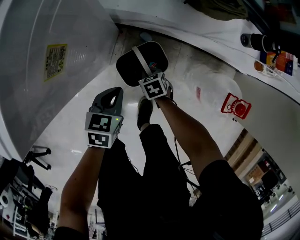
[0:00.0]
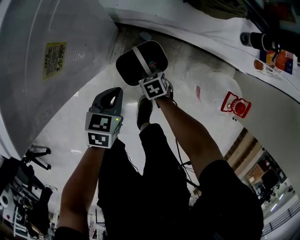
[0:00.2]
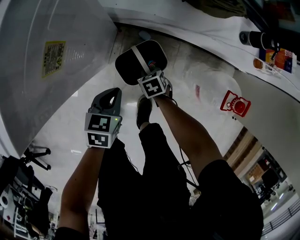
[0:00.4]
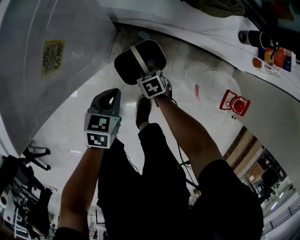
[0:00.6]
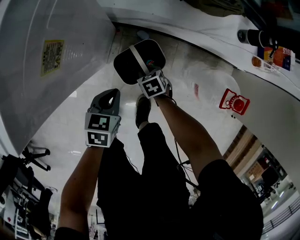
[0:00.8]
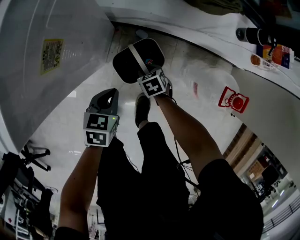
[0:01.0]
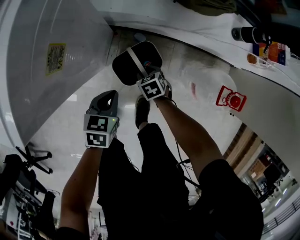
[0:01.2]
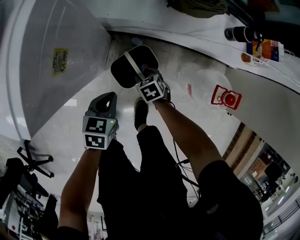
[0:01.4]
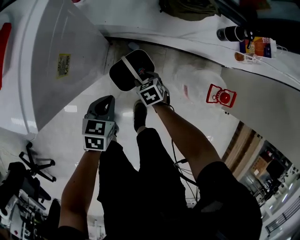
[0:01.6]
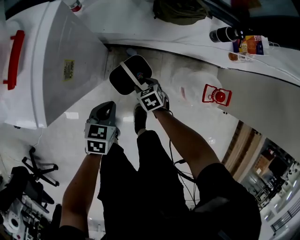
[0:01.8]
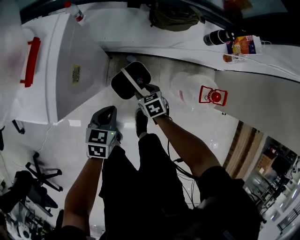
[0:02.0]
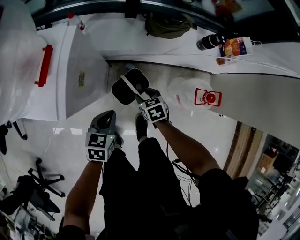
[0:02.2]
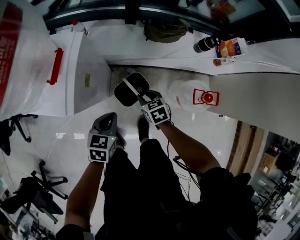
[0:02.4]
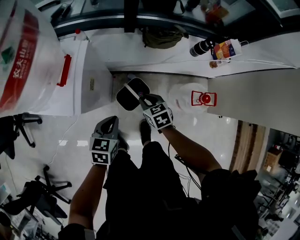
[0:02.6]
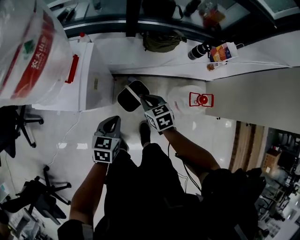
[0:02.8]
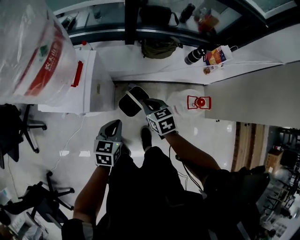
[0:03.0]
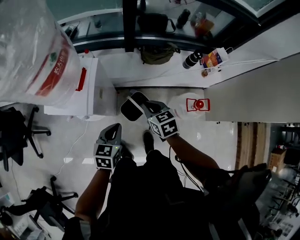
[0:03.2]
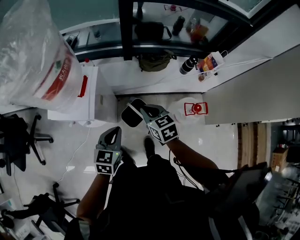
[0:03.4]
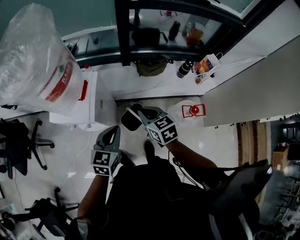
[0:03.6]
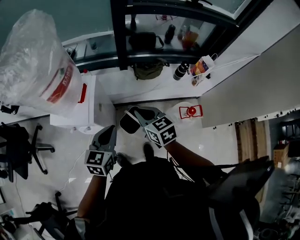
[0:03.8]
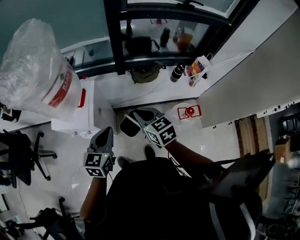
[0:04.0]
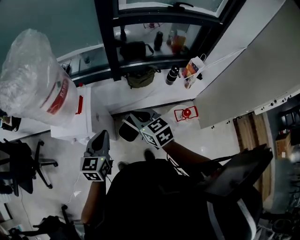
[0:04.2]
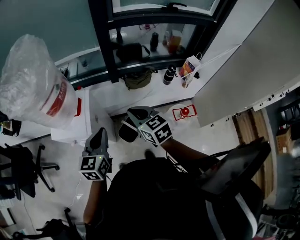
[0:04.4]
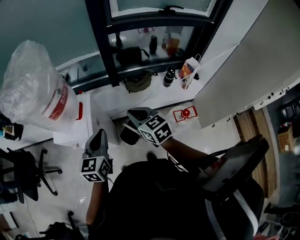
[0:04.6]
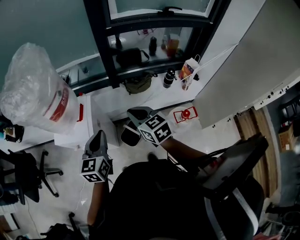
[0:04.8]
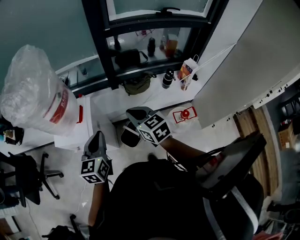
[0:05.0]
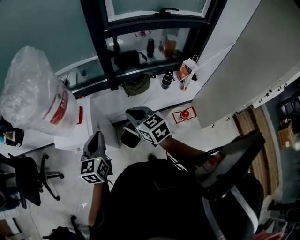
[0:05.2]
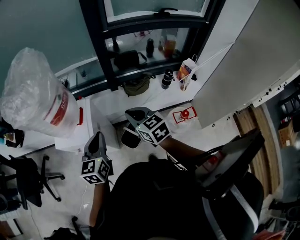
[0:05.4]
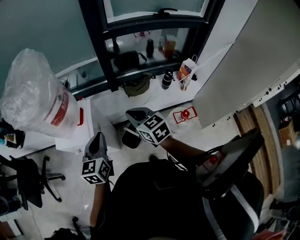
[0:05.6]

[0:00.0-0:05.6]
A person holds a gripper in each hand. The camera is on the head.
0:00.0 to 0:01.4: The right gripper travels upward by approximately 5 cm, and opens its fingers.
0:01.4 to 0:02.8: Both grippers move upward, some 30 cm. The right gripper swivels about 20 degrees, and closes its fingers.
0:02.8 to 0:04.2: The grippers both shift upward by about 25 cm. The left gripper rotates roughly 20 degrees. The right gripper rotates roughly 20 degrees.
0:04.2 to 0:05.6: The grippers stay close to where they were, moving slightly.

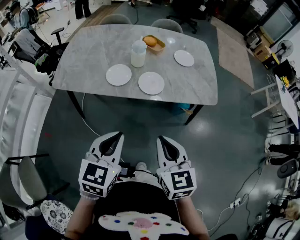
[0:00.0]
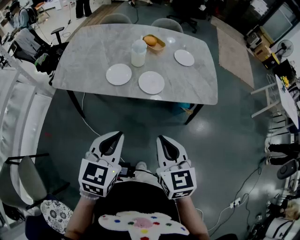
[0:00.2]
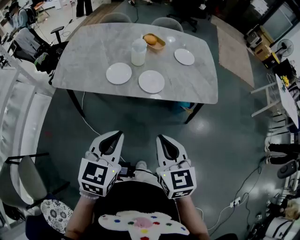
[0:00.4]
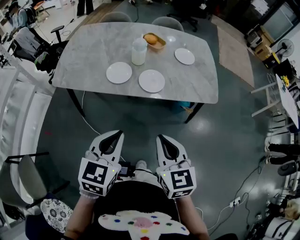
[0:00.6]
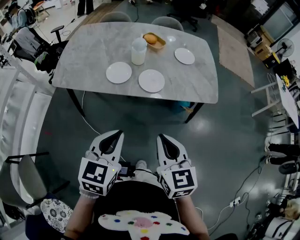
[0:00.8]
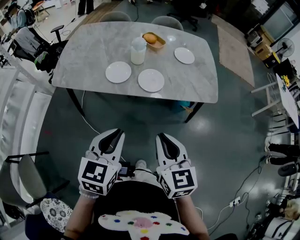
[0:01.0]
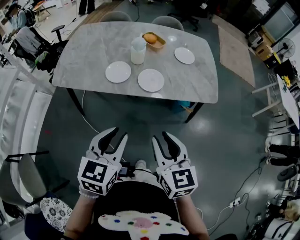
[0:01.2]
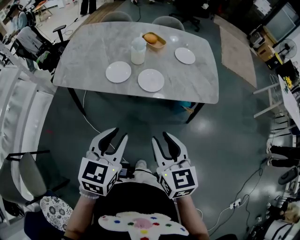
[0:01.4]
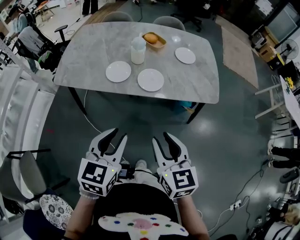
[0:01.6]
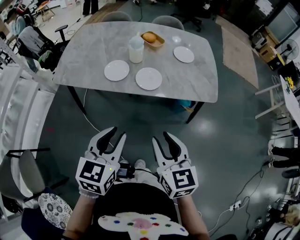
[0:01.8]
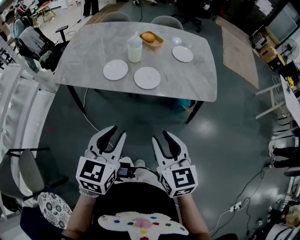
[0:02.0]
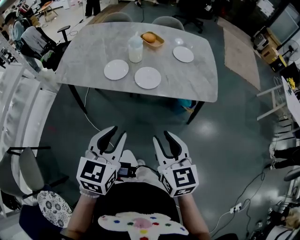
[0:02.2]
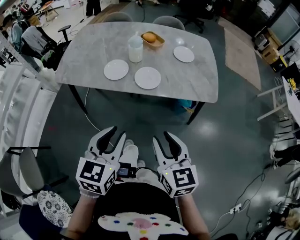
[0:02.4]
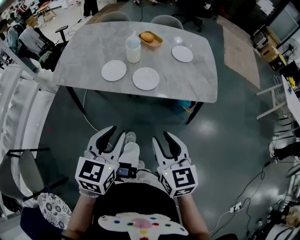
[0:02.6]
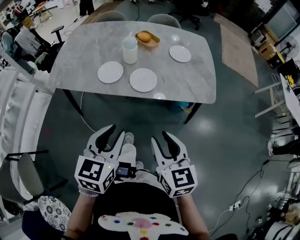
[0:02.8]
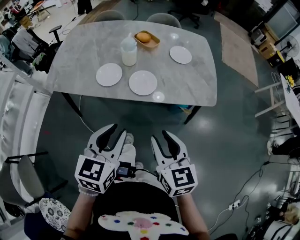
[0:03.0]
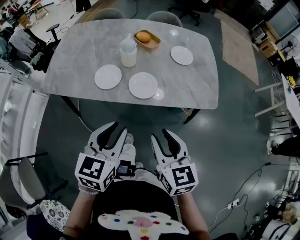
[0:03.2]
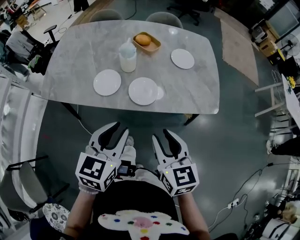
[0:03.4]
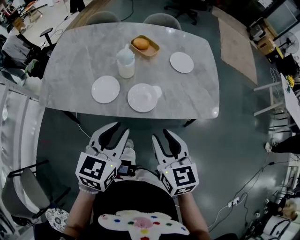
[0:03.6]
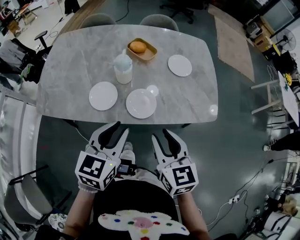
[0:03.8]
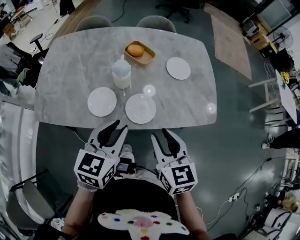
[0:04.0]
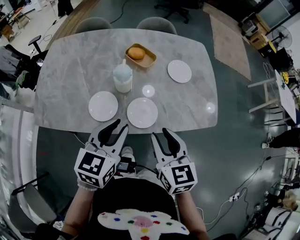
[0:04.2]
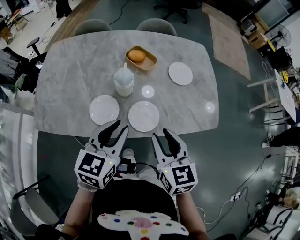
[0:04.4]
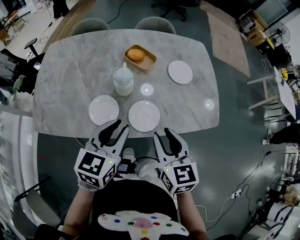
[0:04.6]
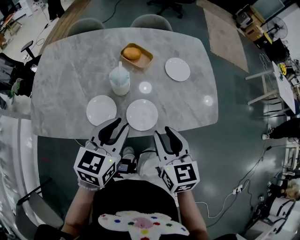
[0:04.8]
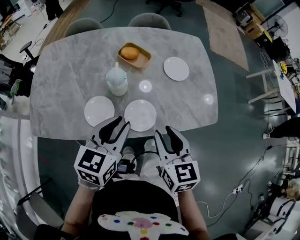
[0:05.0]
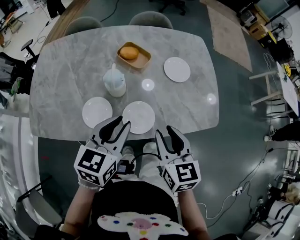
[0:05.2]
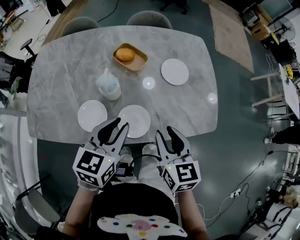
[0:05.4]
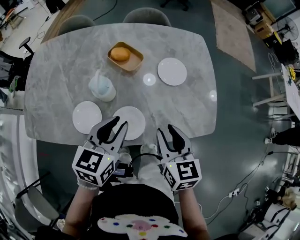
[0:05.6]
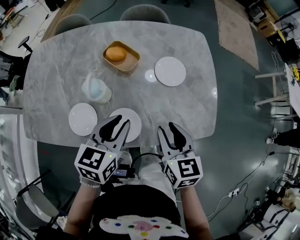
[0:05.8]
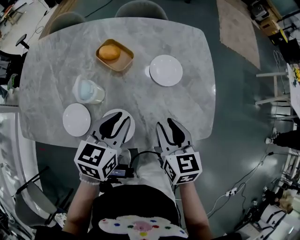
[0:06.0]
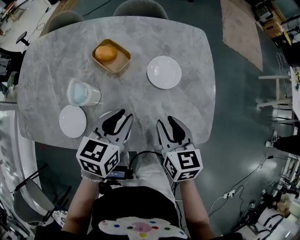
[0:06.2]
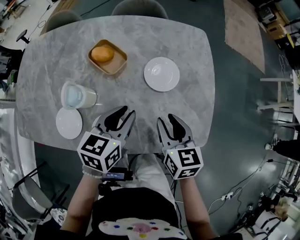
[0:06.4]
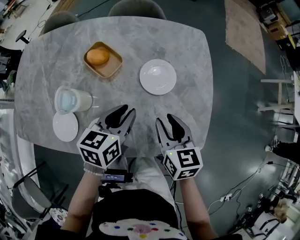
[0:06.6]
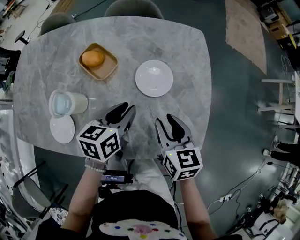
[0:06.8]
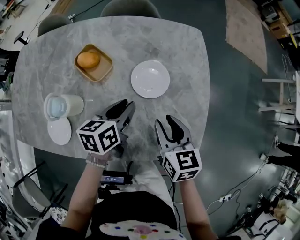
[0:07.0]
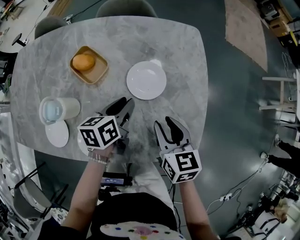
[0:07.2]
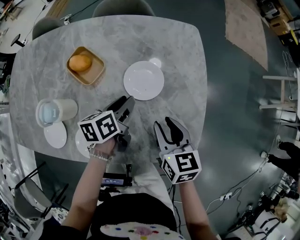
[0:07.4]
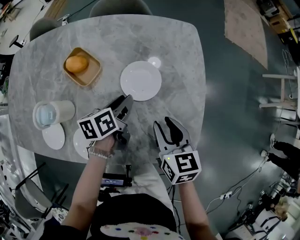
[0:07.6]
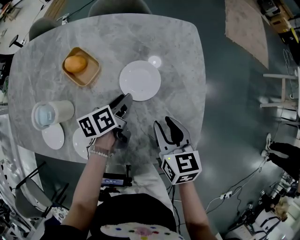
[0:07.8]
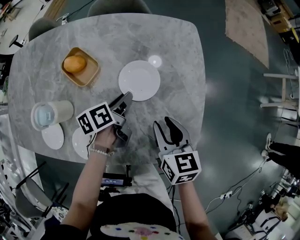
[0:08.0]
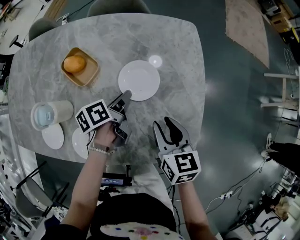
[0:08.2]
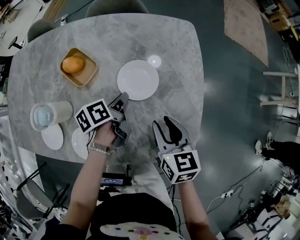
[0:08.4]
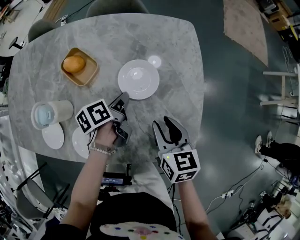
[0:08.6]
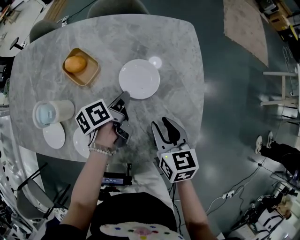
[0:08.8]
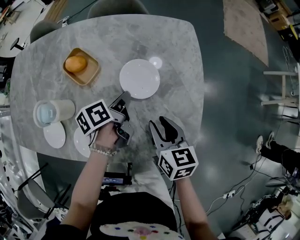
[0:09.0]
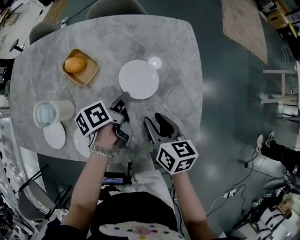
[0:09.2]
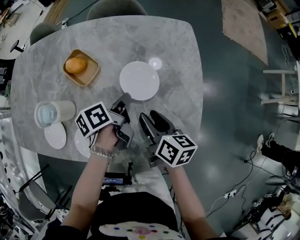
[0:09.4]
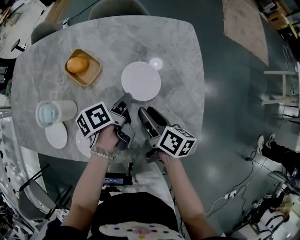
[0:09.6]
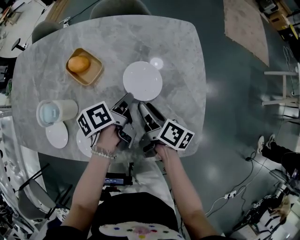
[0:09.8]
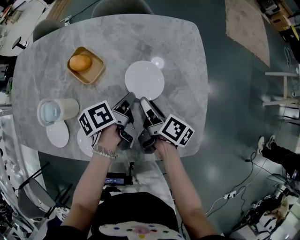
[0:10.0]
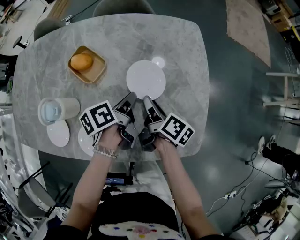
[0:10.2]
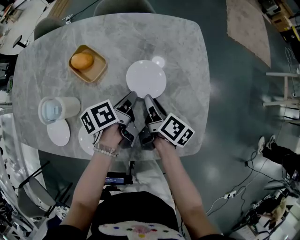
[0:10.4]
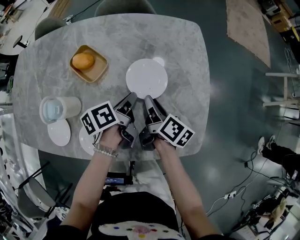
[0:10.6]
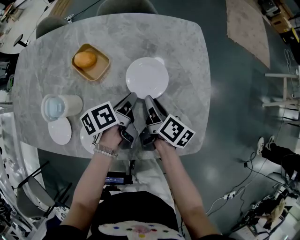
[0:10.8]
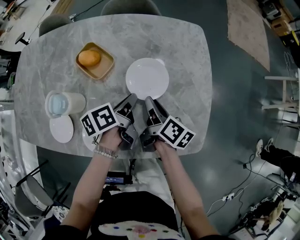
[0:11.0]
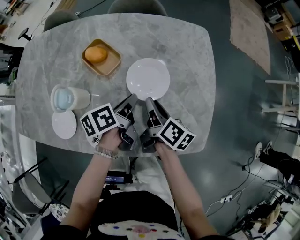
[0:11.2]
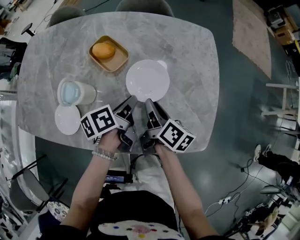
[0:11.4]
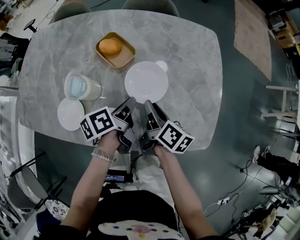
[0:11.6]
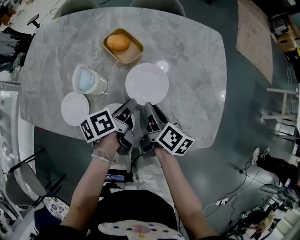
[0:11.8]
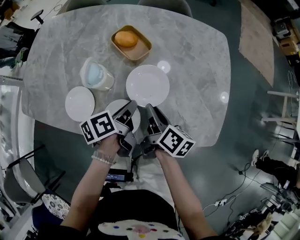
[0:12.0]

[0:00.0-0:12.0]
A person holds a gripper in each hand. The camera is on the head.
0:00.0 to 0:01.6: The right gripper opens its fingers, while the left gripper opens.
0:01.6 to 0:03.0: The right gripper changes place by approximately 5 cm. The left gripper moves forward, roughly 5 cm.
0:03.0 to 0:04.4: Both grippers travel together forward, approximately 20 cm.
0:04.4 to 0:06.0: Both grippers move forward, to the right and downward, approximately 20 cm.
0:06.0 to 0:07.6: The left gripper is displaced downward, forward and to the right by about 20 cm, and swivels roughly 40 degrees, while the right gripper is displaced to the right, forward and downward by some 15 cm.
0:07.6 to 0:09.0: The left gripper closes up.
0:09.0 to 0:10.4: The right gripper heads forward, covering roughly 5 cm, and rolls clockwise, seen from behind, by about 50 degrees.
0:10.4 to 0:12.0: The left gripper goes about 15 cm backward and to the left; the right gripper heads to the left and backward, covering some 15 cm.

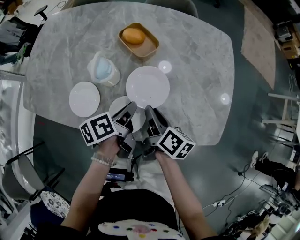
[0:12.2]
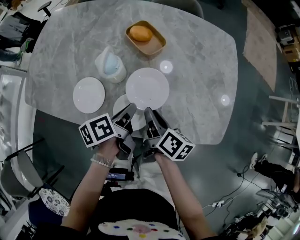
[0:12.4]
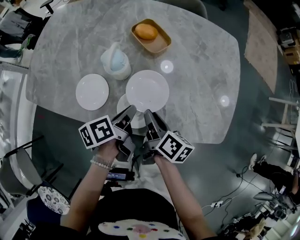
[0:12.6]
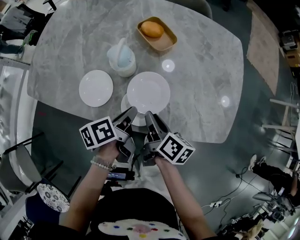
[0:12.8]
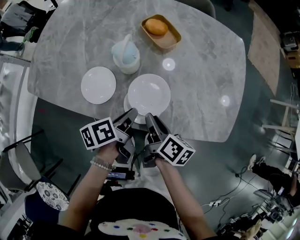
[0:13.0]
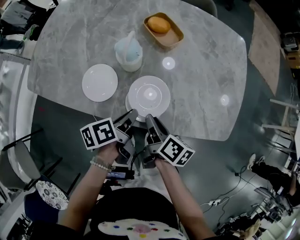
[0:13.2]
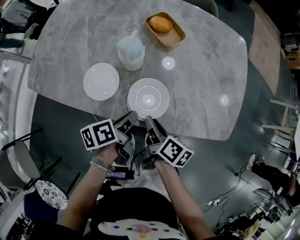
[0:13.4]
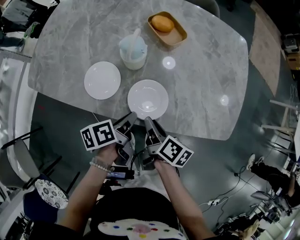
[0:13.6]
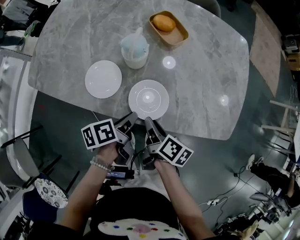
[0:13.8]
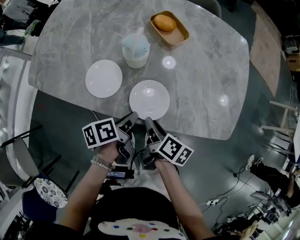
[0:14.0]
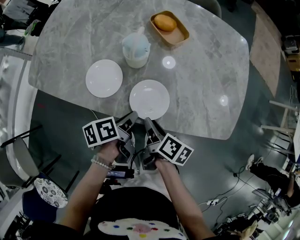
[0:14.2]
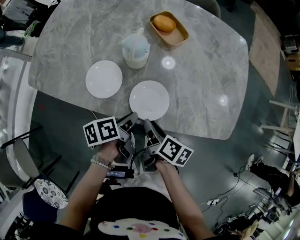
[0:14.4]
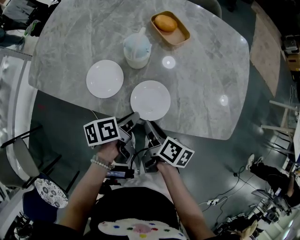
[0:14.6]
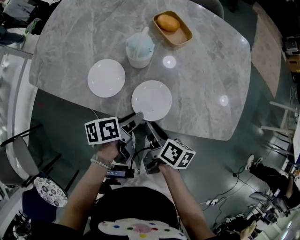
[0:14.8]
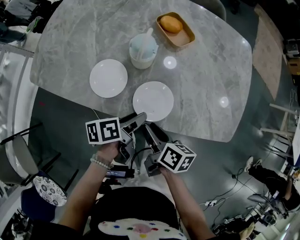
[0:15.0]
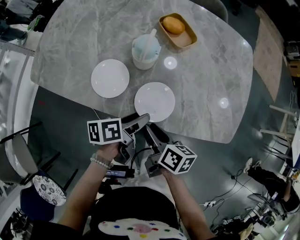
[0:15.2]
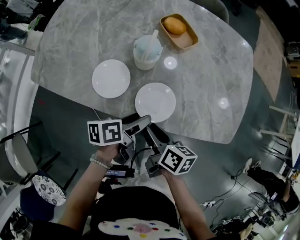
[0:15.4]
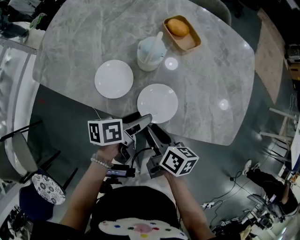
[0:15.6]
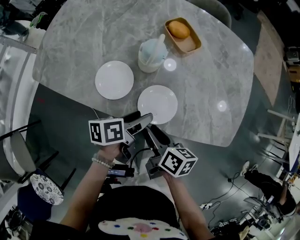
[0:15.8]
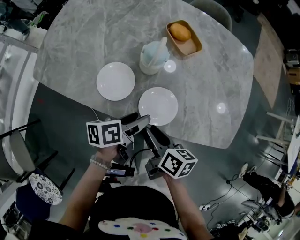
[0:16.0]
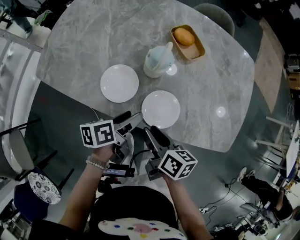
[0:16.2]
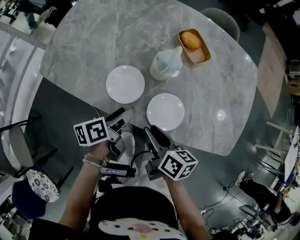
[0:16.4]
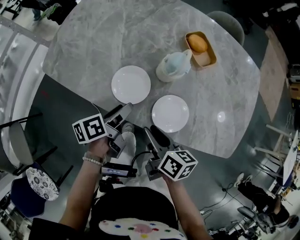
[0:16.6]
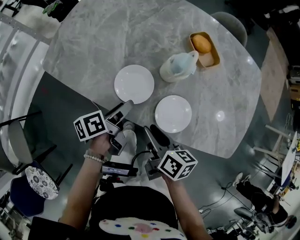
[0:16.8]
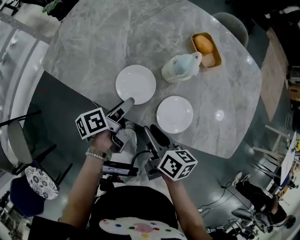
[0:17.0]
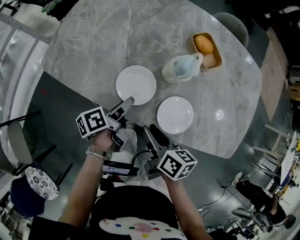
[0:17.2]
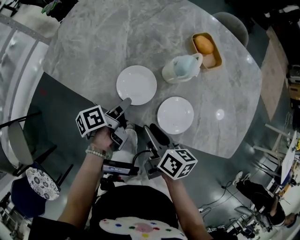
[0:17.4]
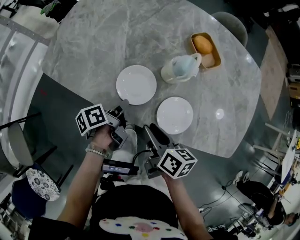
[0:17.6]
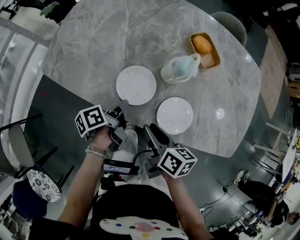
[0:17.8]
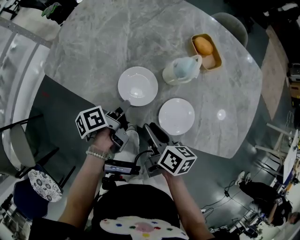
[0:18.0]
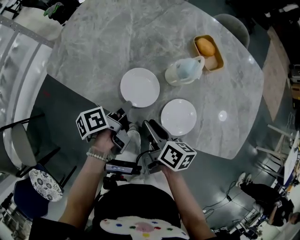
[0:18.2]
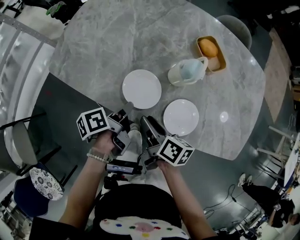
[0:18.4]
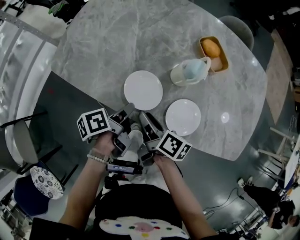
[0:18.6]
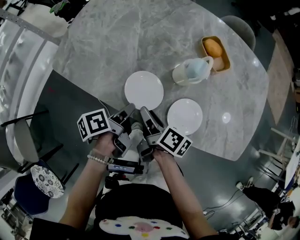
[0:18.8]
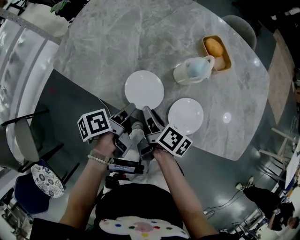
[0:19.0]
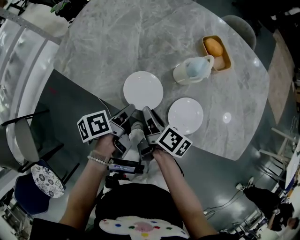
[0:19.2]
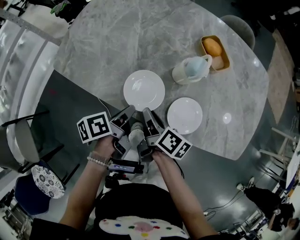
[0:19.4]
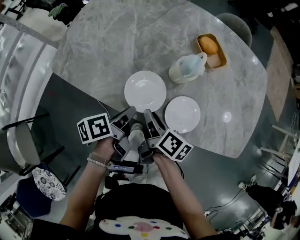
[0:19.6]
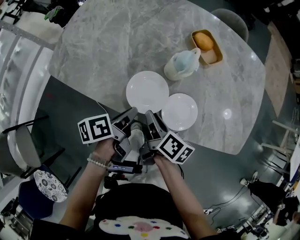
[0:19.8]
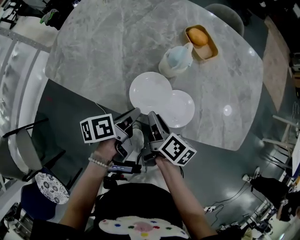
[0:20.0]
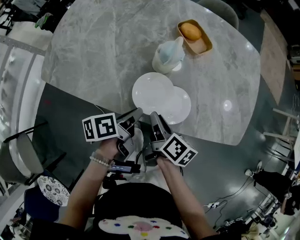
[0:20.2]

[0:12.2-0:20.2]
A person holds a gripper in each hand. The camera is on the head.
0:12.2 to 0:13.8: The two grippers go about 10 cm backward and to the left.
0:13.8 to 0:15.4: The left gripper opens.
0:15.4 to 0:17.0: The left gripper shifts roughly 15 cm to the left, and changes its angle by some 30 degrees. The right gripper shifts some 10 cm to the left.
0:17.0 to 0:18.6: The right gripper goes about 10 cm to the left and forward, and turns by roughly 20 degrees. Meanwhile the left gripper closes its fingers.
0:18.6 to 0:20.2: Both grippers travel together to the right, some 10 cm.
